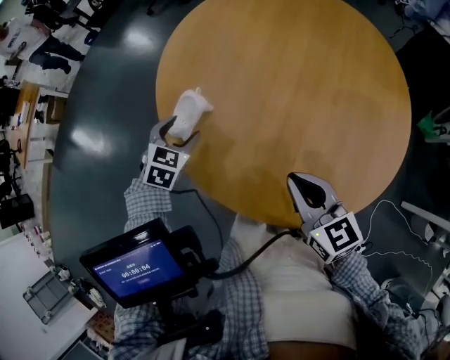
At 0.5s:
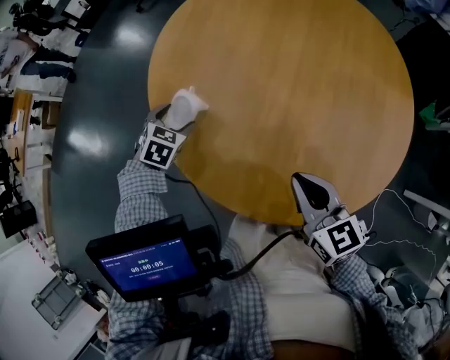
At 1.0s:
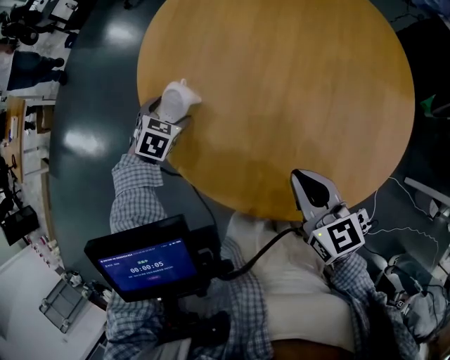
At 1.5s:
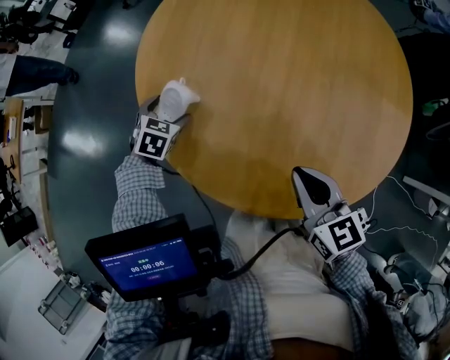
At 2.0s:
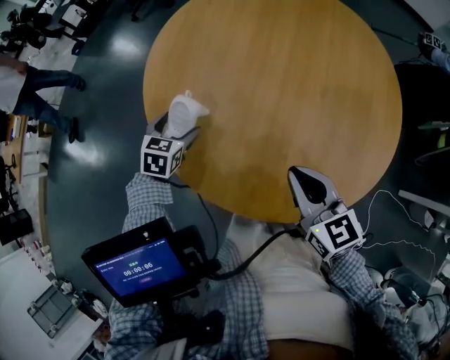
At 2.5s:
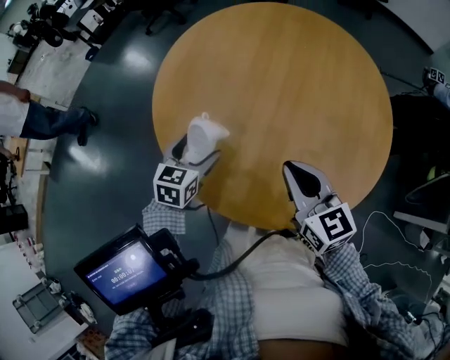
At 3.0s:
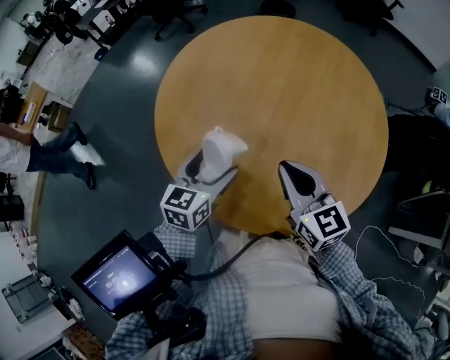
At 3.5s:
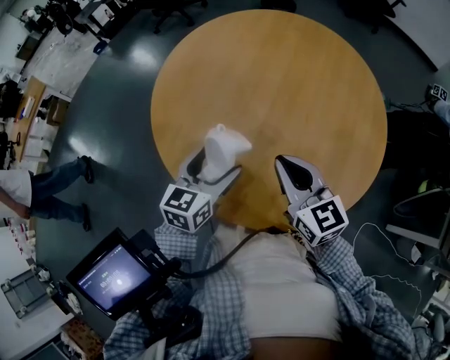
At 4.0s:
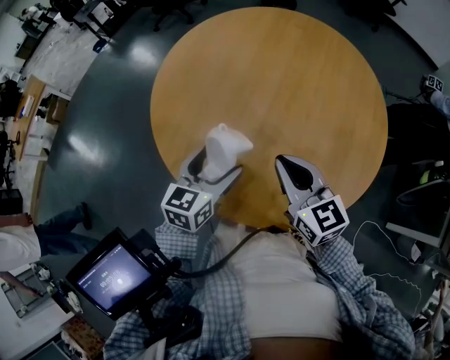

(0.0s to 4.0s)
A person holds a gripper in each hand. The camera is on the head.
2.0s - 4.0s: The left gripper moves to the right, upward and backward, about 20 cm, and turns by roughly 30 degrees.

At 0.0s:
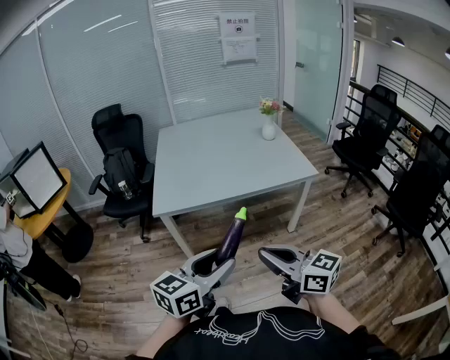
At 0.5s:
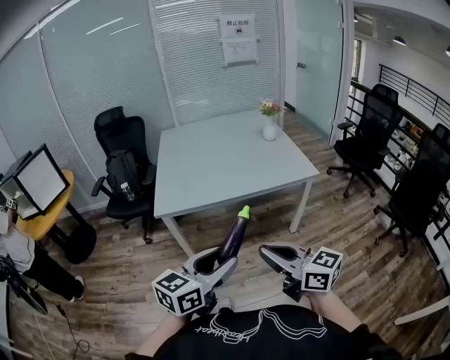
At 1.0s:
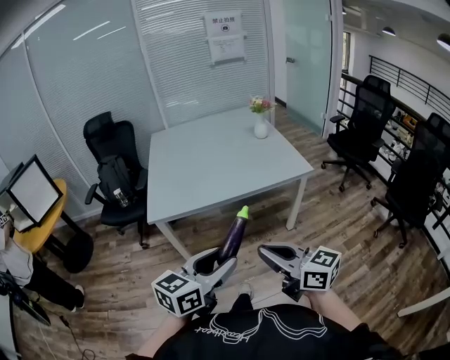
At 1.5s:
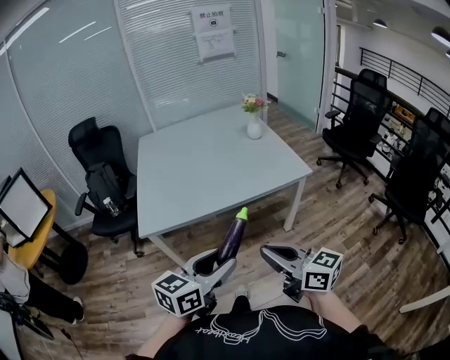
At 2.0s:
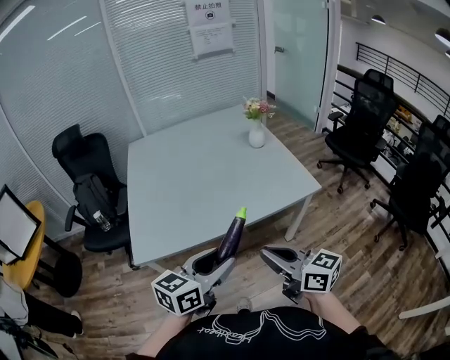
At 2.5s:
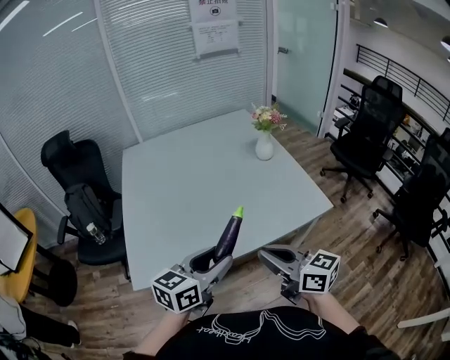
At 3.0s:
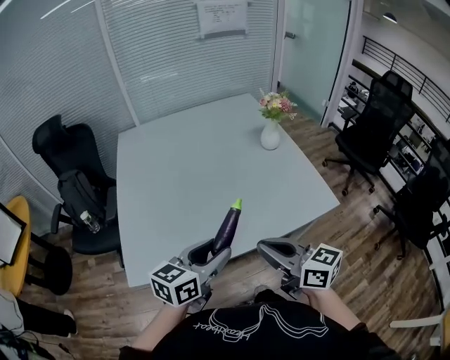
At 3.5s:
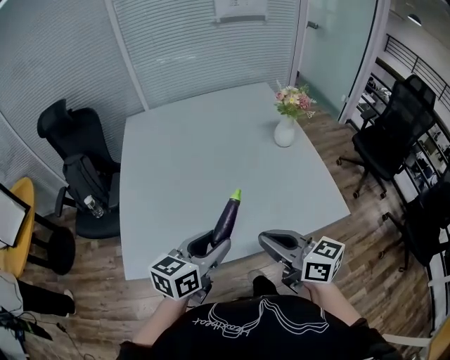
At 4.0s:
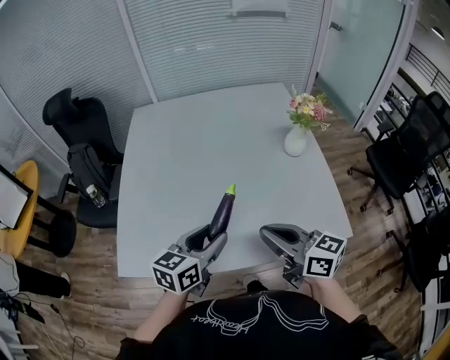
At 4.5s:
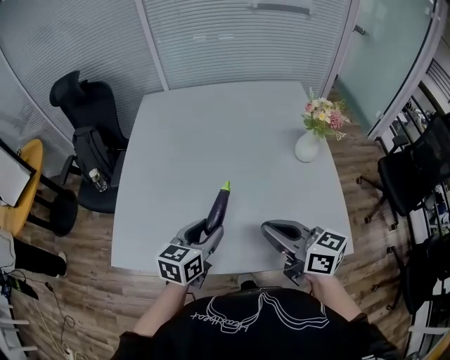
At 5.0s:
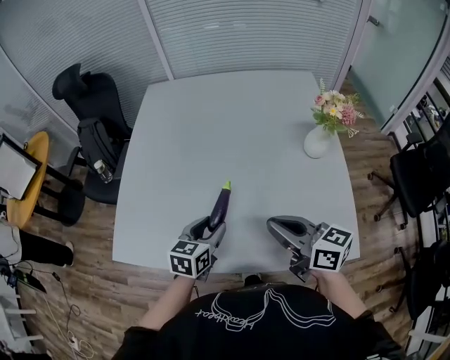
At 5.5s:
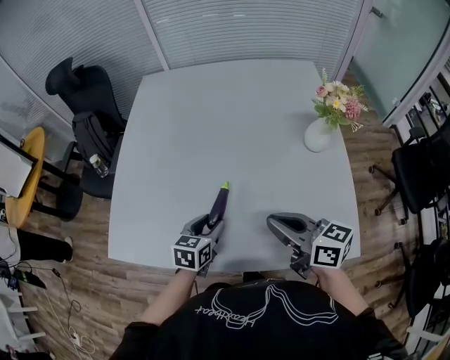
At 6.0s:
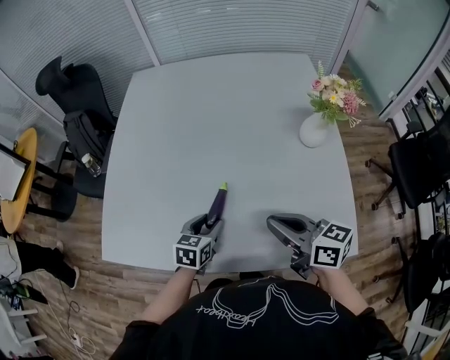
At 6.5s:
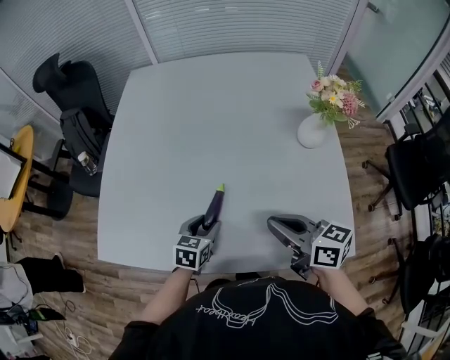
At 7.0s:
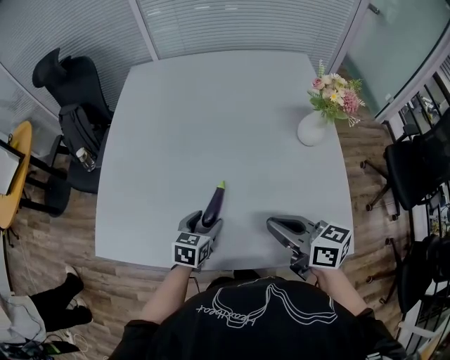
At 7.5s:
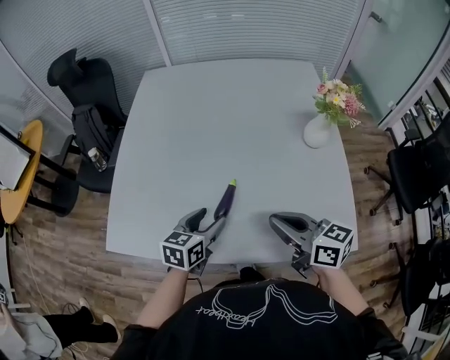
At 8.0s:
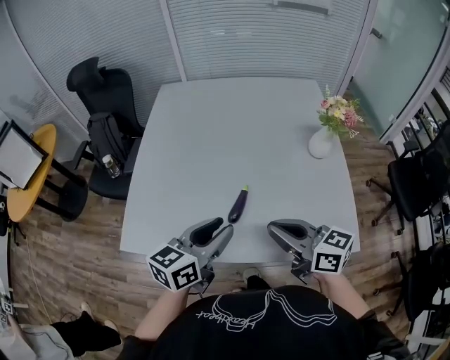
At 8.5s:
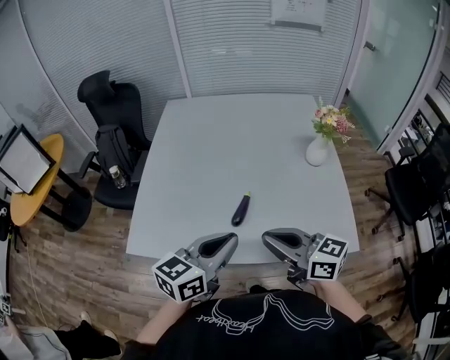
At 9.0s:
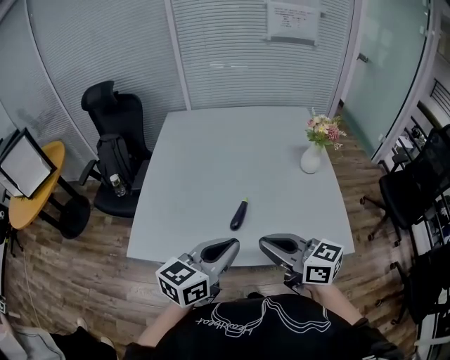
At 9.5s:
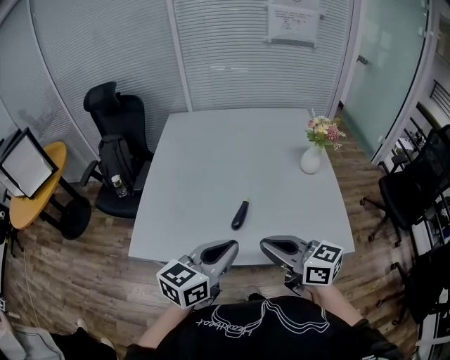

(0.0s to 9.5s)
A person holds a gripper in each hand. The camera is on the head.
0.0s - 2.0s: Both grippers move forward, approximately 25 cm.
2.0s - 4.0s: The grippers both shift forward by roughly 35 cm. The left gripper changes its angle by about 20 degrees.
4.0s - 5.5s: The left gripper travels downward and forward by some 20 cm, and turns by some 20 degrees; the right gripper goes approximately 10 cm forward, downward and to the right.
5.5s - 7.5s: The grippers make only small movements.
7.5s - 9.5s: The left gripper is displaced upward and backward by approximately 25 cm, swivels some 20 degrees, and closes its fingers; the right gripper goes some 20 cm backward, to the left and upward.

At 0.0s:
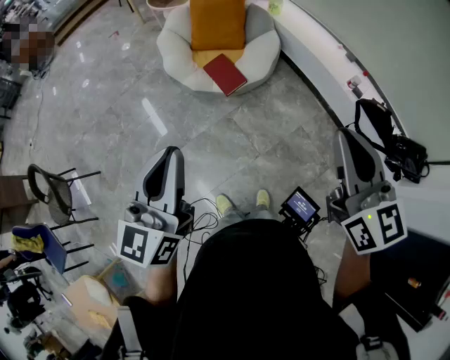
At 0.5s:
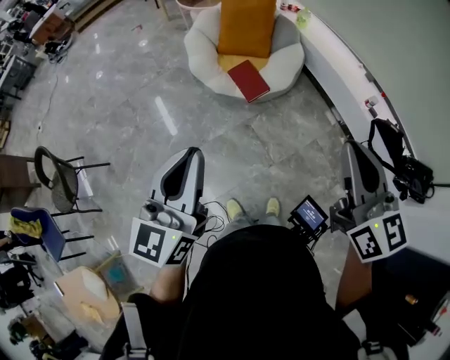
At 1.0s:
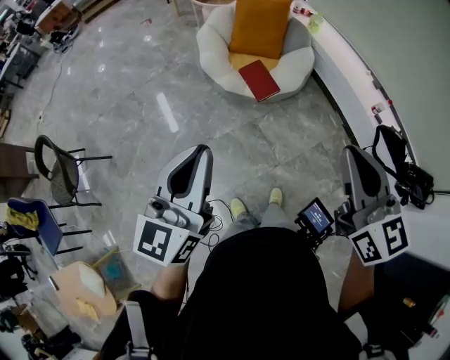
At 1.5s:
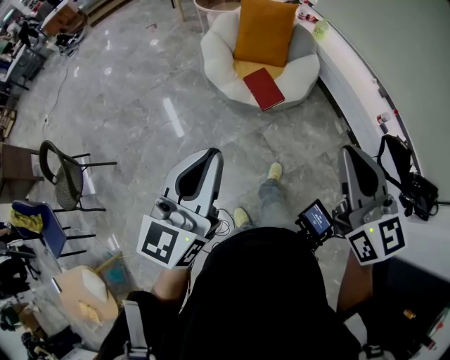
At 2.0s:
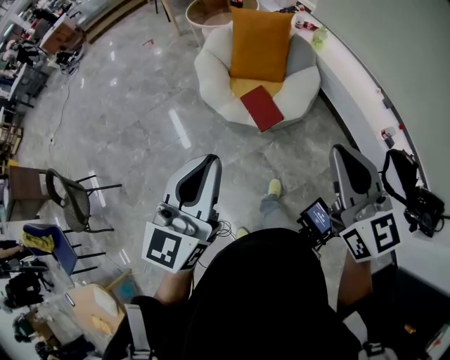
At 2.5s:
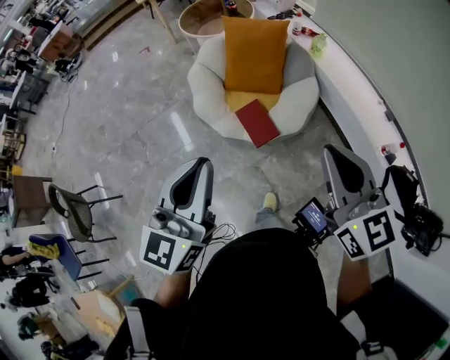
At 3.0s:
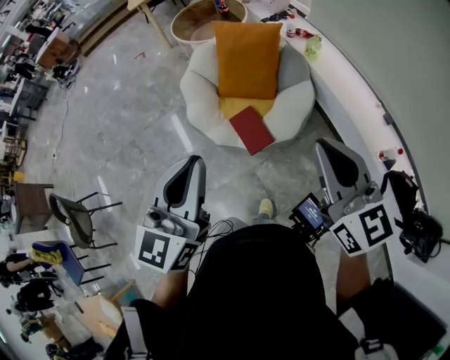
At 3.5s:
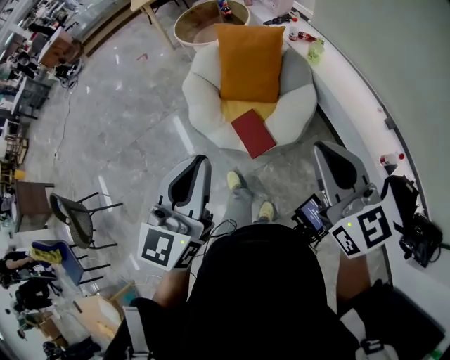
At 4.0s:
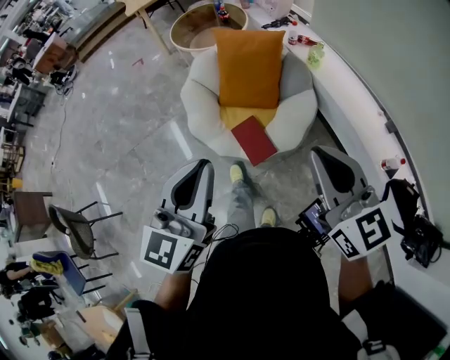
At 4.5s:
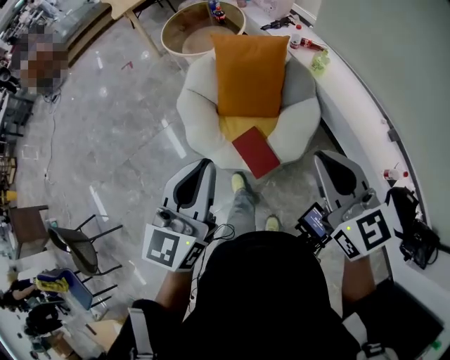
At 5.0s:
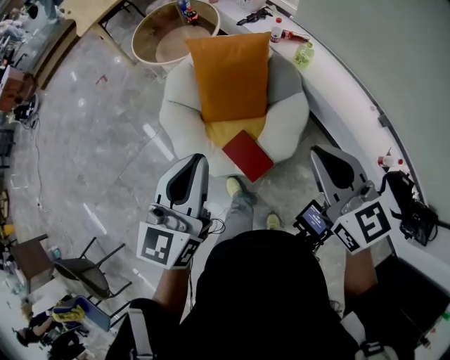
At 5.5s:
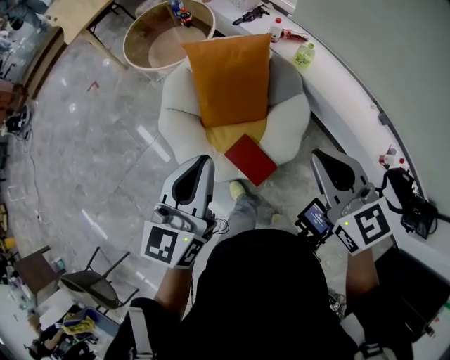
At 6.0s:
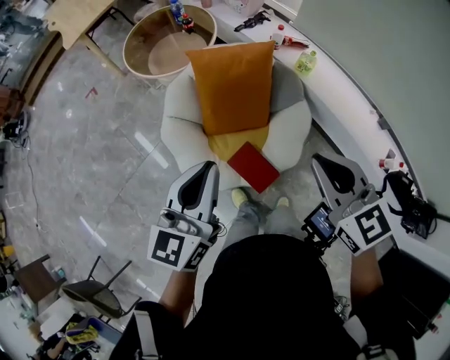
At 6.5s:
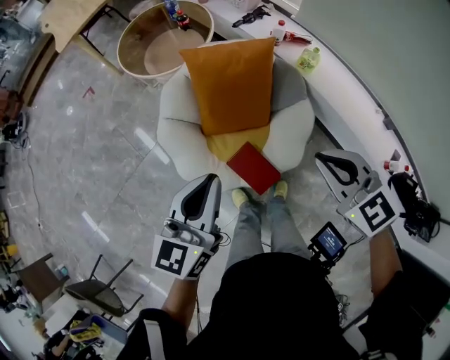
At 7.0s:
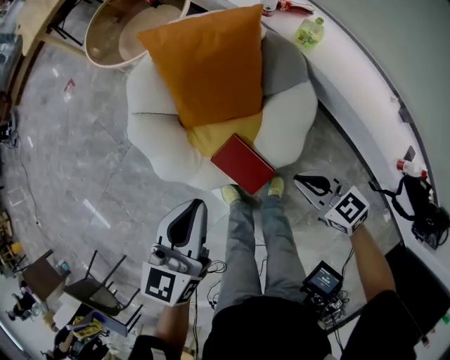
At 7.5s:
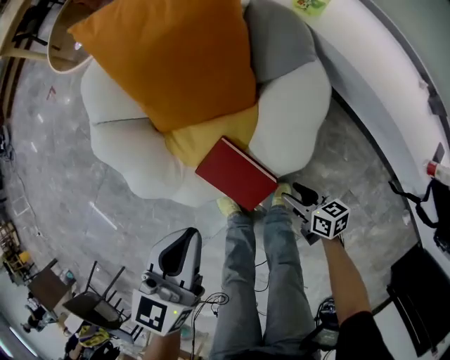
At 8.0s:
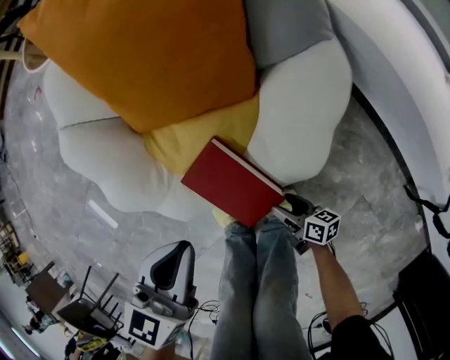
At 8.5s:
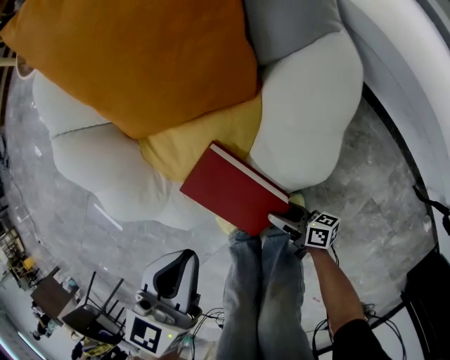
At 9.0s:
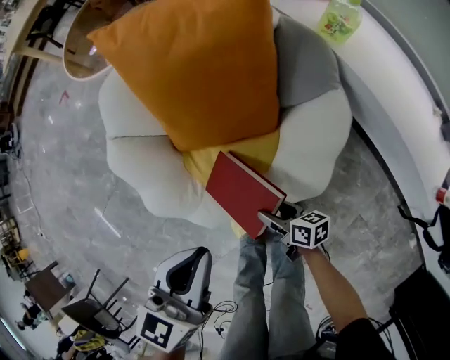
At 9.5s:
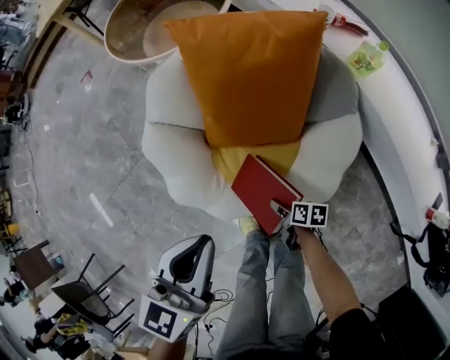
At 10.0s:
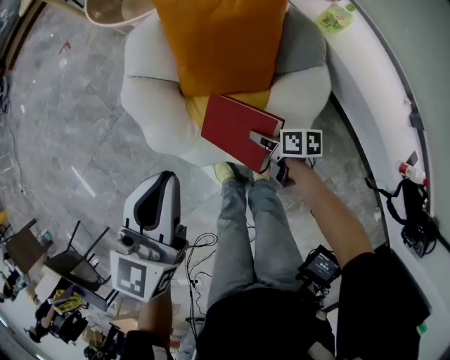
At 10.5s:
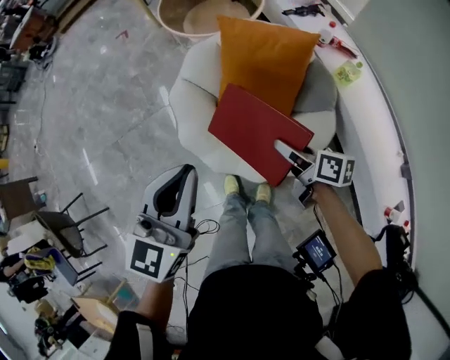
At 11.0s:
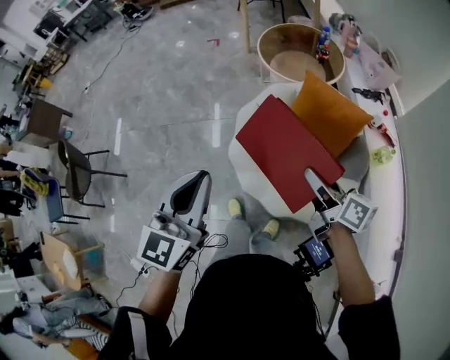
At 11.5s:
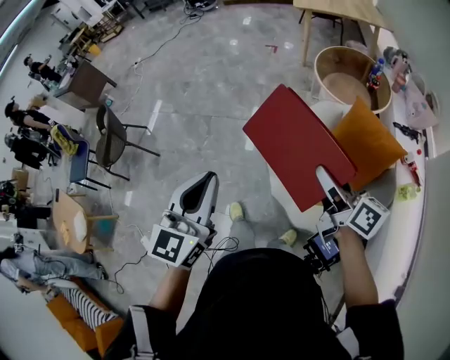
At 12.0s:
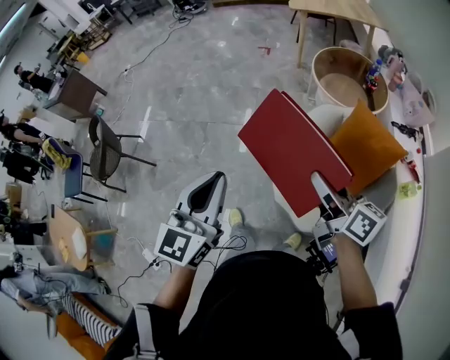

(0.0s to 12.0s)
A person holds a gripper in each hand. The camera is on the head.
0.0s - 2.0s: The left gripper shifts some 15 cm forward. Meanwhile the right gripper heads forward and to the left, covering approximately 20 cm.
2.0s - 4.0s: Both grippers travel together forward, approximately 25 cm.
4.0s - 6.0s: Both grippers move forward, some 30 cm. The right gripper changes its angle by roughly 20 degrees.
6.0s - 8.0s: The right gripper goes about 80 cm downward, rotates around the line of its fingers by some 60 degrees, clockwise from behind, and opens. Meanwhile the left gripper goes approximately 50 cm downward, and turns by some 20 degrees.
8.0s - 10.0s: The left gripper moves upward, roughly 30 cm. The right gripper shifts some 35 cm upward and forward.
10.0s - 12.0s: The right gripper travels upward by about 50 cm, and points its fingers approximately 40 degrees further upward; the left gripper changes place by roughly 40 cm, and changes its angle by roughly 50 degrees.

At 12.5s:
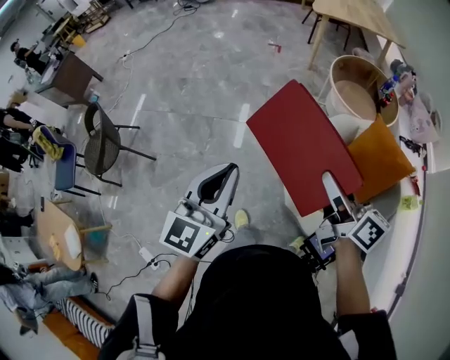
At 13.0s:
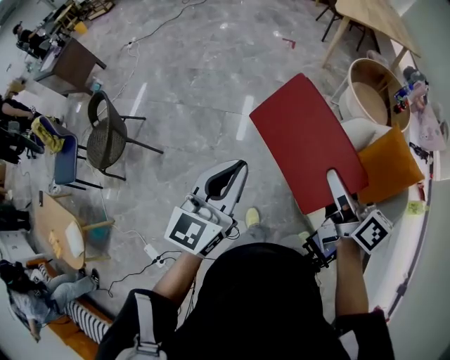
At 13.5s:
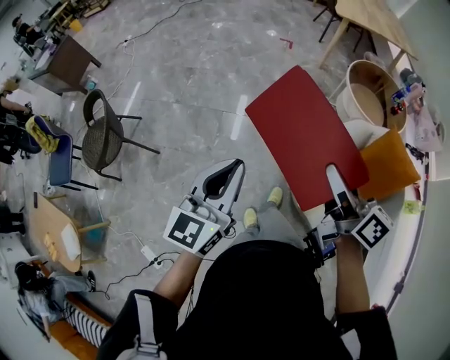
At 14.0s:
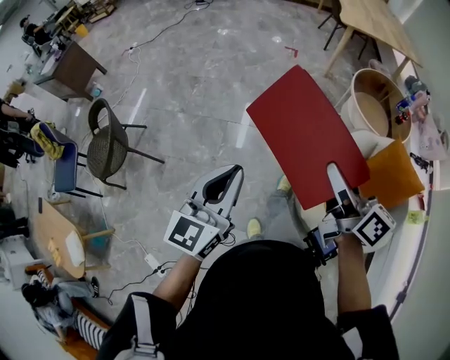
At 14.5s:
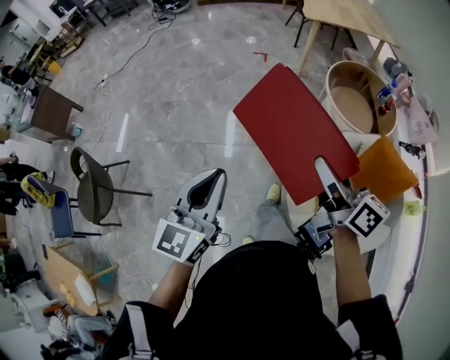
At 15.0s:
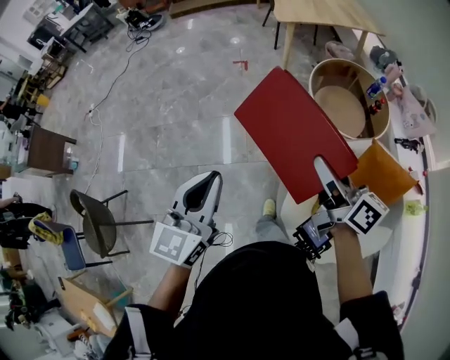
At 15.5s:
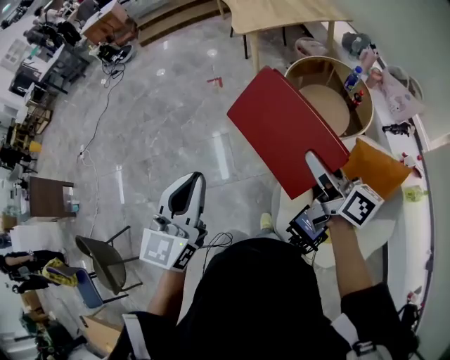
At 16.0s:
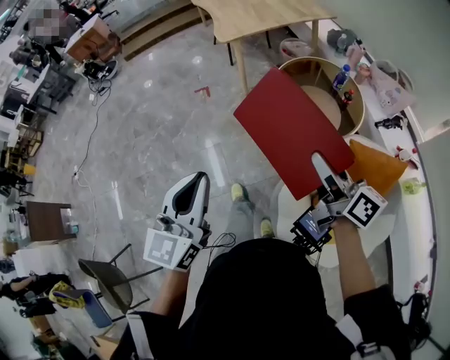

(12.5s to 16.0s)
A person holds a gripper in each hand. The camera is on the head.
12.5s - 14.5s: Both grippers move forward, about 20 cm.
14.5s - 16.0s: The grippers both shift forward and to the right by about 35 cm. The right gripper turns by roughly 20 degrees.
